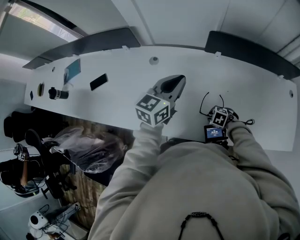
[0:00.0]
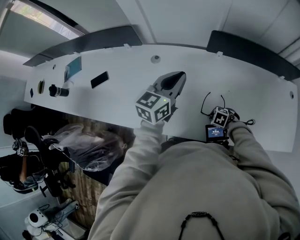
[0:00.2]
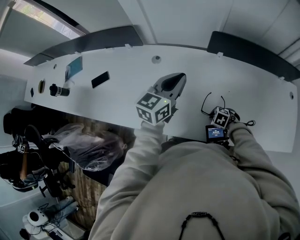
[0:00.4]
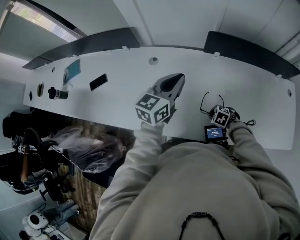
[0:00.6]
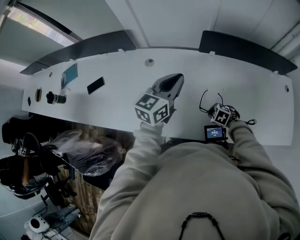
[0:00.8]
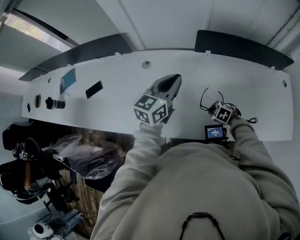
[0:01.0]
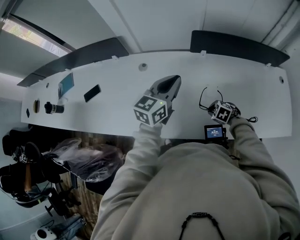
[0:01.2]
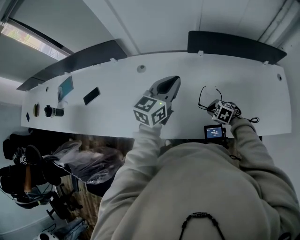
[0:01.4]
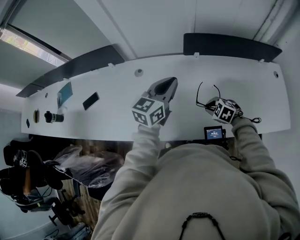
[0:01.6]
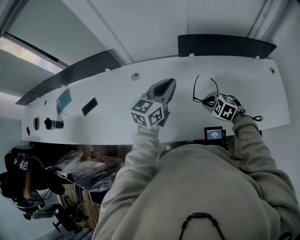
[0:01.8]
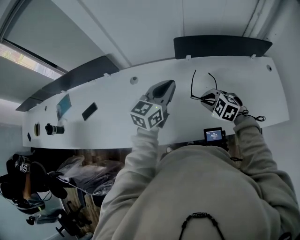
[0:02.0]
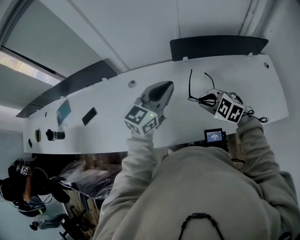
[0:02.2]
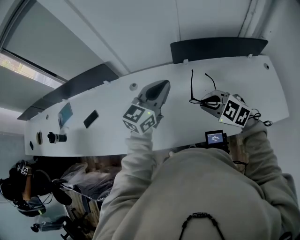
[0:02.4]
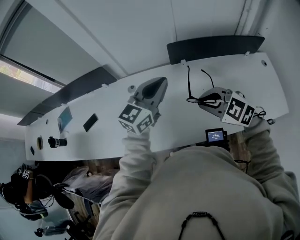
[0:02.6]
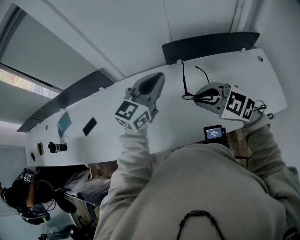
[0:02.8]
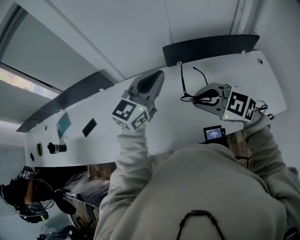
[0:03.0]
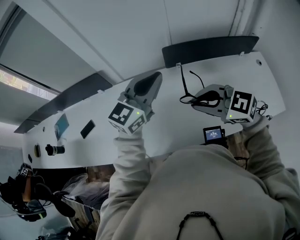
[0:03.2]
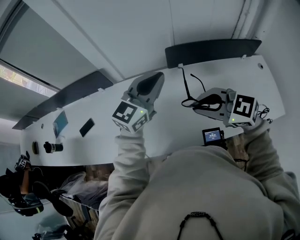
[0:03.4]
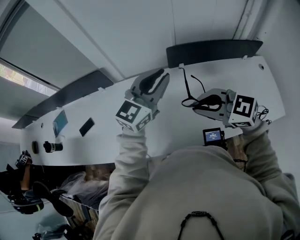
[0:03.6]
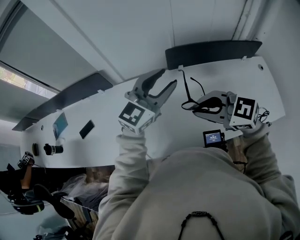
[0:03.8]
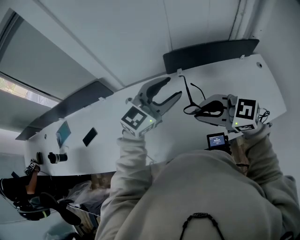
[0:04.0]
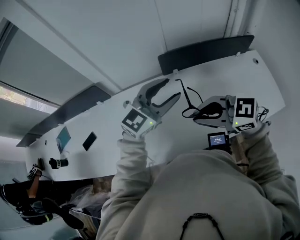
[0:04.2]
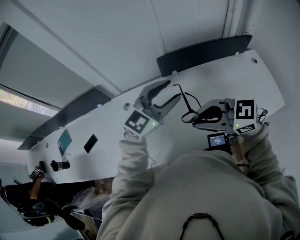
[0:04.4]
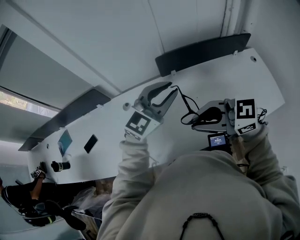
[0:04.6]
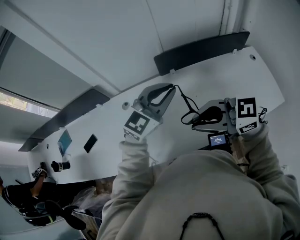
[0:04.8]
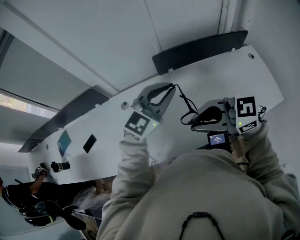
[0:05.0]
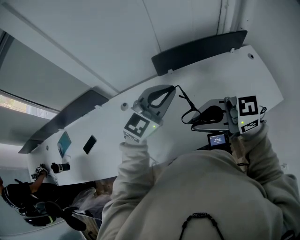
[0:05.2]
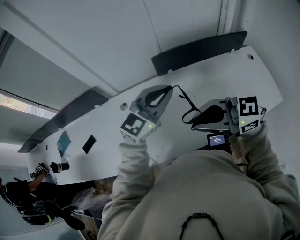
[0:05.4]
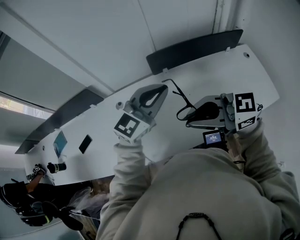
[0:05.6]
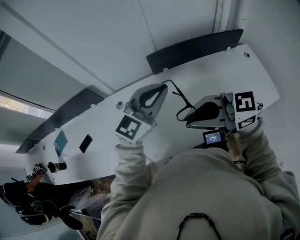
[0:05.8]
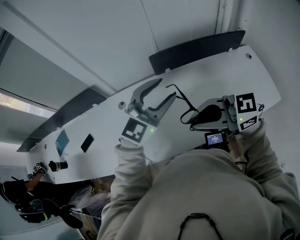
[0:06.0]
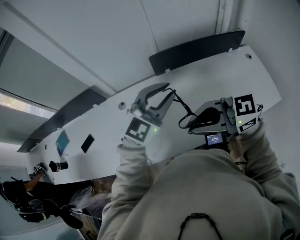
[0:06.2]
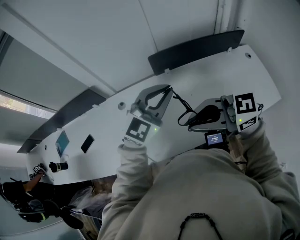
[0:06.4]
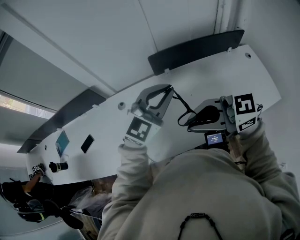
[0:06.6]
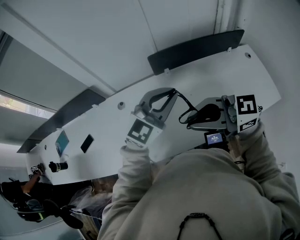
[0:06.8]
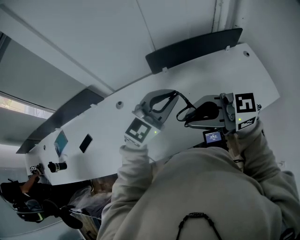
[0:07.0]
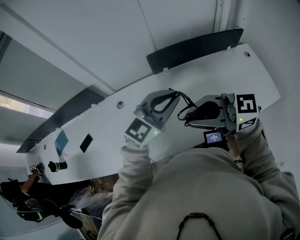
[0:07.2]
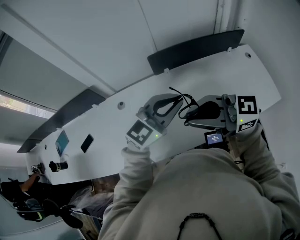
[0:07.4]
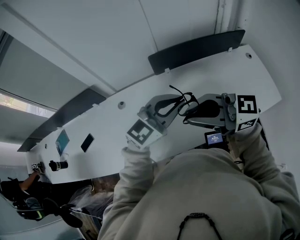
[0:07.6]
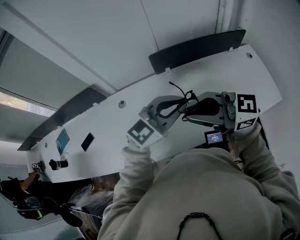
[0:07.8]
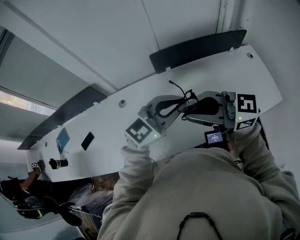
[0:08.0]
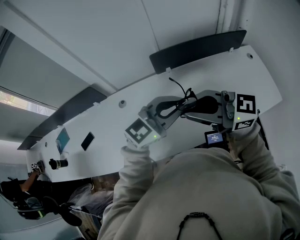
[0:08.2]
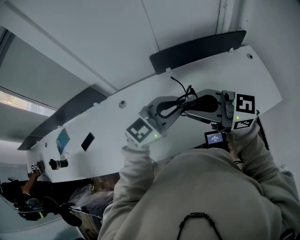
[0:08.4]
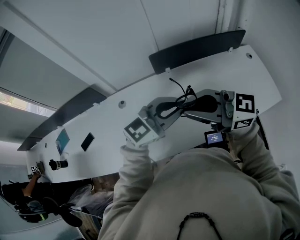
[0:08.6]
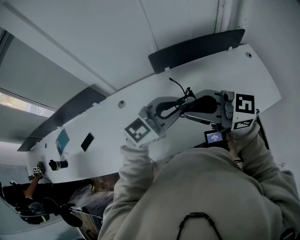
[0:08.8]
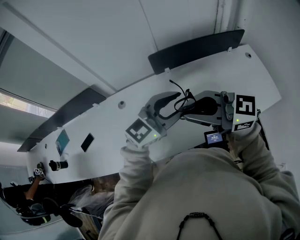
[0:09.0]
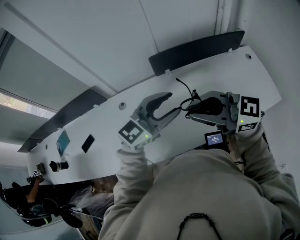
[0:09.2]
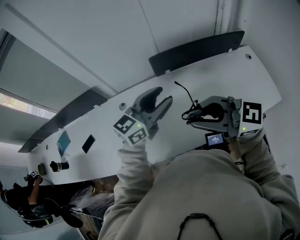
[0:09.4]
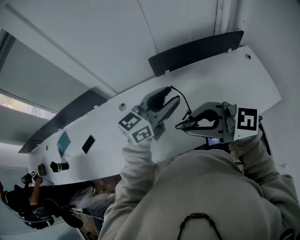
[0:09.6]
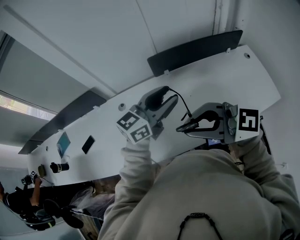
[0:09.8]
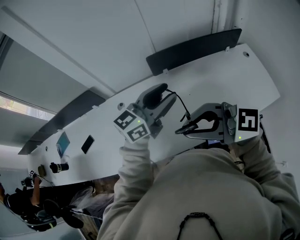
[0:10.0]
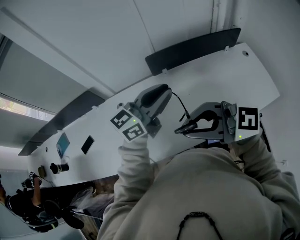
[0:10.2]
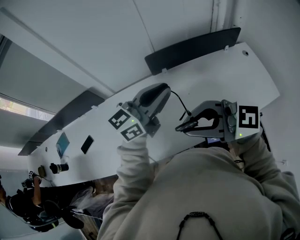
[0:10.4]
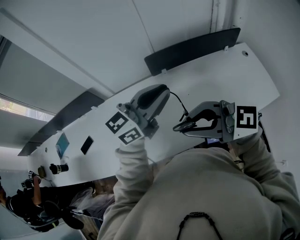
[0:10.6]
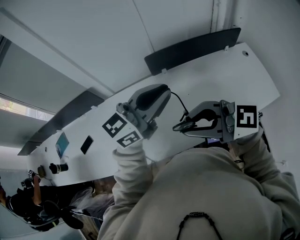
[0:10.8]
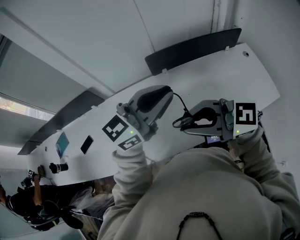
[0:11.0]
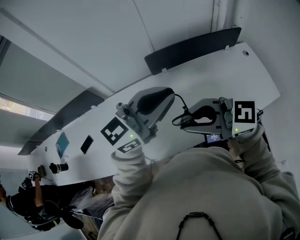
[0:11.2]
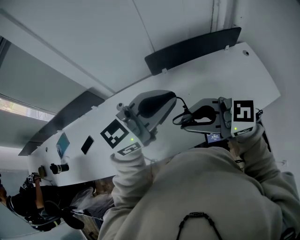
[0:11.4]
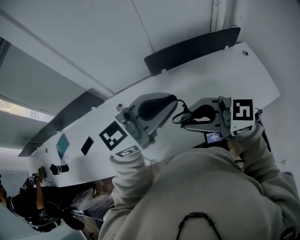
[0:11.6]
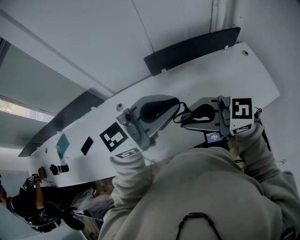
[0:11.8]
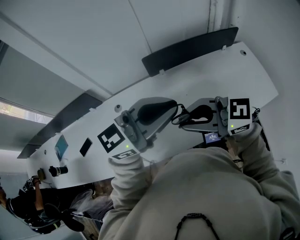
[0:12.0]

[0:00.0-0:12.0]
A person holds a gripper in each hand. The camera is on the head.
0.0 to 1.6 s: The right gripper moves upward, some 10 cm, and swivels roughly 20 degrees.
1.6 to 3.0 s: The left gripper heads upward, covering roughly 15 cm, and turns by approximately 20 degrees. The right gripper goes approximately 30 cm upward, and tilts its fingers about 30 degrees upward.
3.0 to 4.4 s: The right gripper rotates about 20 degrees, while the left gripper shifts by some 5 cm, rotates some 20 degrees, and opens.
4.4 to 6.0 s: The left gripper closes, then reopens.
6.0 to 7.6 s: The left gripper moves about 5 cm, and closes.
7.6 to 9.0 s: The left gripper opens.
9.0 to 10.4 s: The left gripper shifts by approximately 5 cm, changes its angle by roughly 20 degrees, and closes. The right gripper changes place by some 5 cm.
10.4 to 12.0 s: The left gripper changes place by approximately 10 cm.

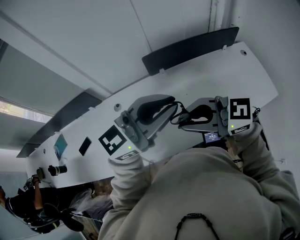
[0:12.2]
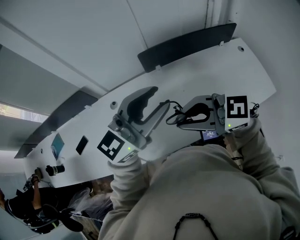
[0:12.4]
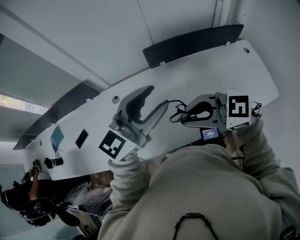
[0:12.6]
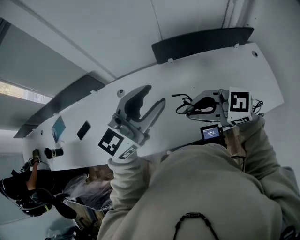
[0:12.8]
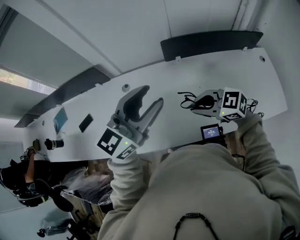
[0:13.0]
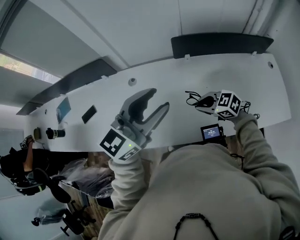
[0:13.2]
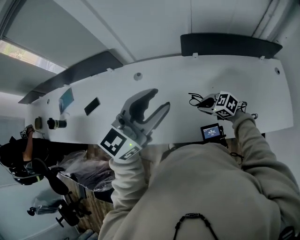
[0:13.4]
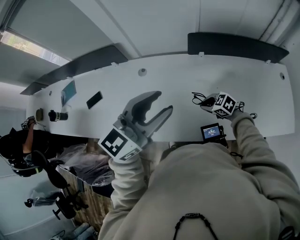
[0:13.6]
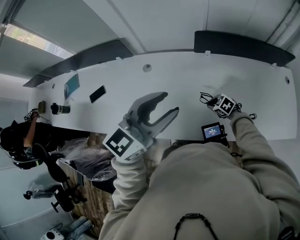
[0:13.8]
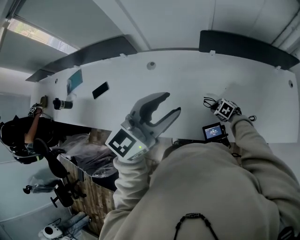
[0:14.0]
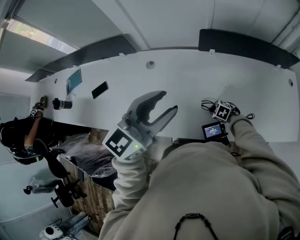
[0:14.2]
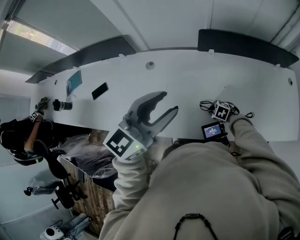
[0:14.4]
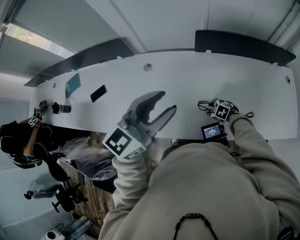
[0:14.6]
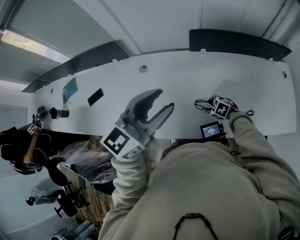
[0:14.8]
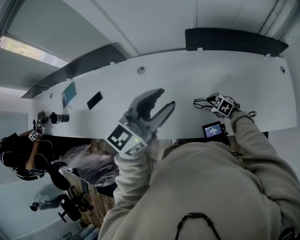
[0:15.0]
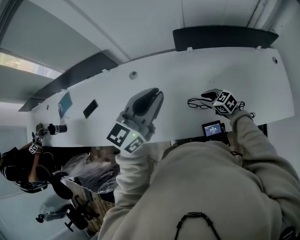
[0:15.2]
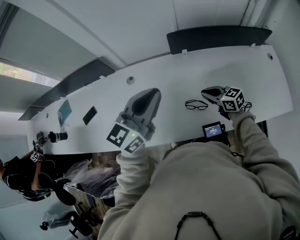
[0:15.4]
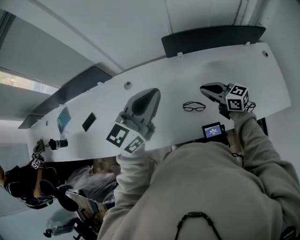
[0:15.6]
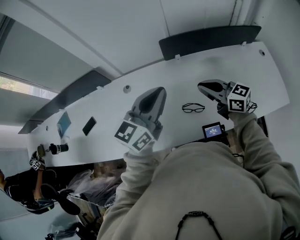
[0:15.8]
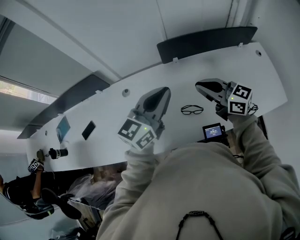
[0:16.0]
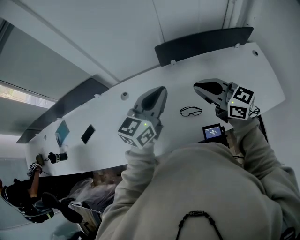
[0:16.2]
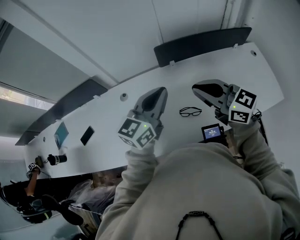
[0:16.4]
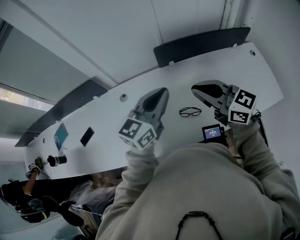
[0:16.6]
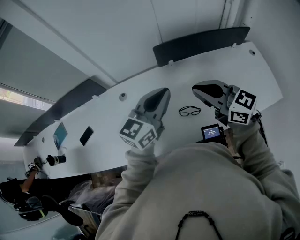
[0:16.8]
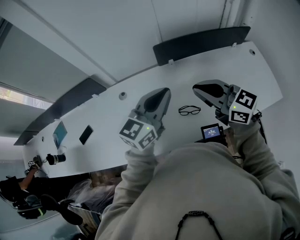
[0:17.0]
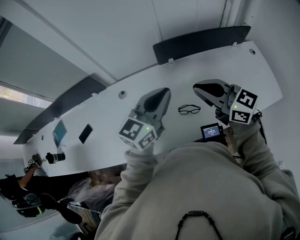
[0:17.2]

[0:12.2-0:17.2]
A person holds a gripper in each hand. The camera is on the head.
12.2 to 13.8 s: The left gripper moves approximately 15 cm, swivels approximately 40 degrees, and opens up. Meanwhile the right gripper shifts some 40 cm downward, and points its fingers approximately 50 degrees further downward.
13.8 to 15.6 s: The right gripper travels upward by about 20 cm, tips its fingers upward by some 50 degrees, and opens and closes again. Meanwhile the left gripper ends up approximately 5 cm from where it was, and closes up.
15.6 to 17.2 s: The right gripper shifts about 15 cm upward.

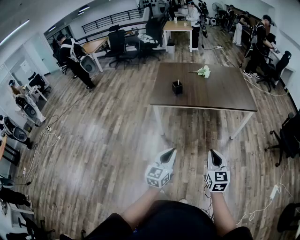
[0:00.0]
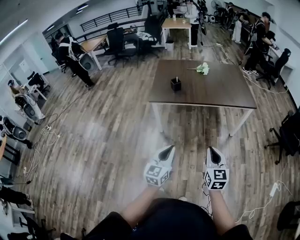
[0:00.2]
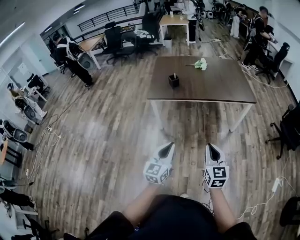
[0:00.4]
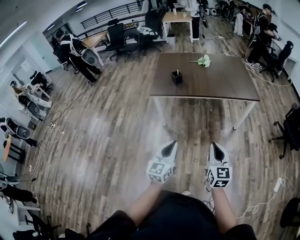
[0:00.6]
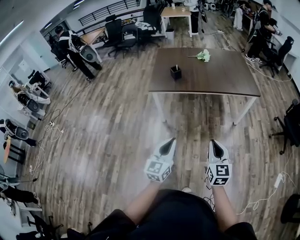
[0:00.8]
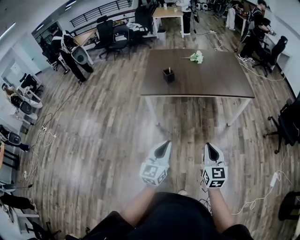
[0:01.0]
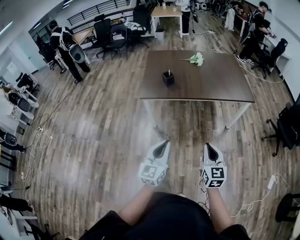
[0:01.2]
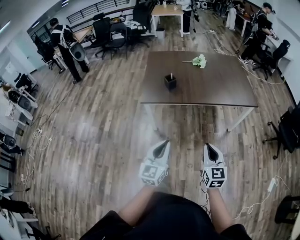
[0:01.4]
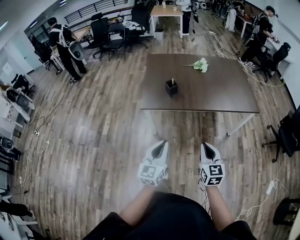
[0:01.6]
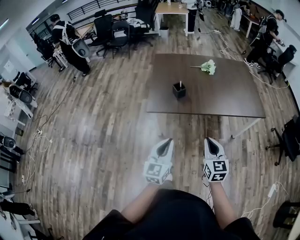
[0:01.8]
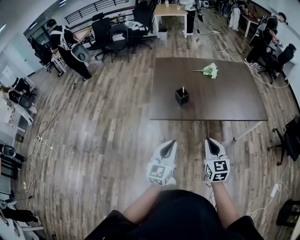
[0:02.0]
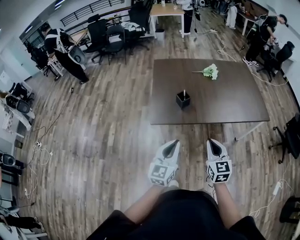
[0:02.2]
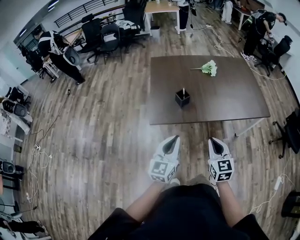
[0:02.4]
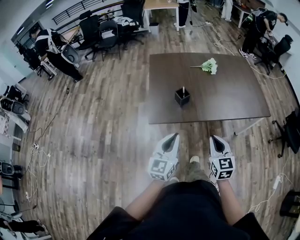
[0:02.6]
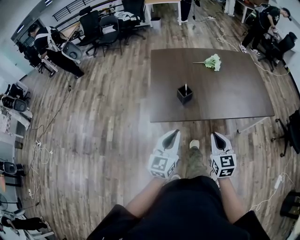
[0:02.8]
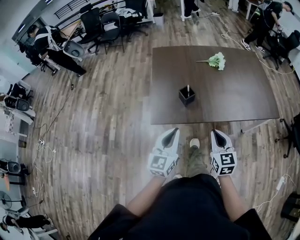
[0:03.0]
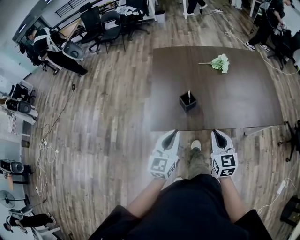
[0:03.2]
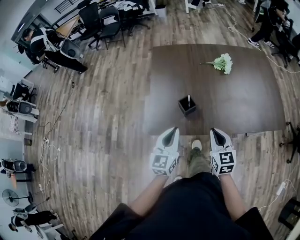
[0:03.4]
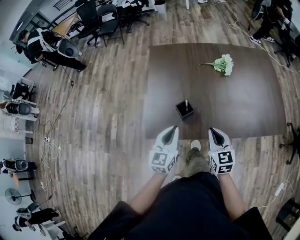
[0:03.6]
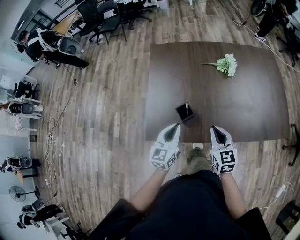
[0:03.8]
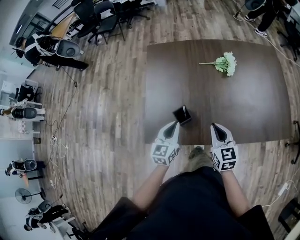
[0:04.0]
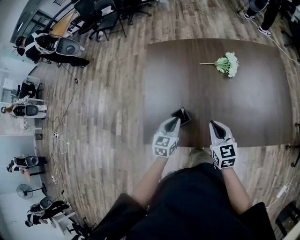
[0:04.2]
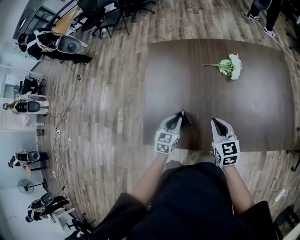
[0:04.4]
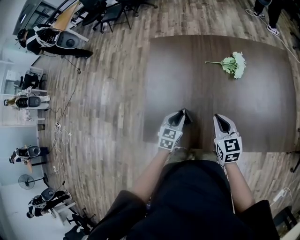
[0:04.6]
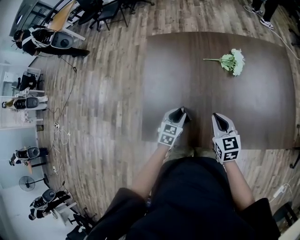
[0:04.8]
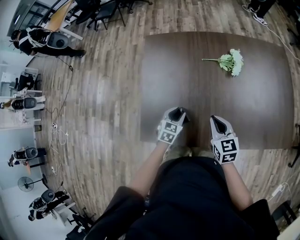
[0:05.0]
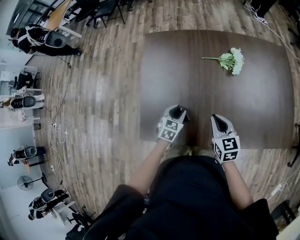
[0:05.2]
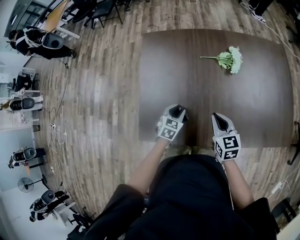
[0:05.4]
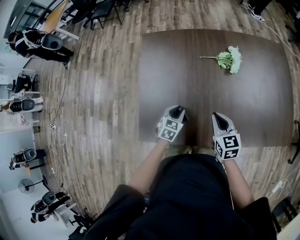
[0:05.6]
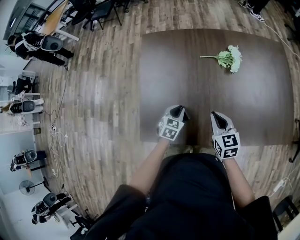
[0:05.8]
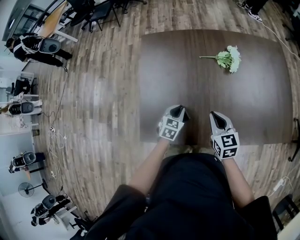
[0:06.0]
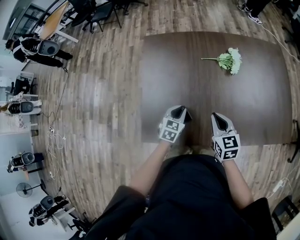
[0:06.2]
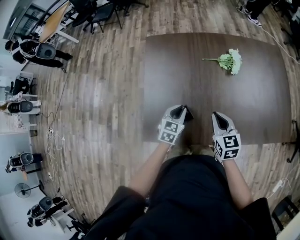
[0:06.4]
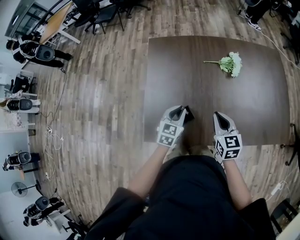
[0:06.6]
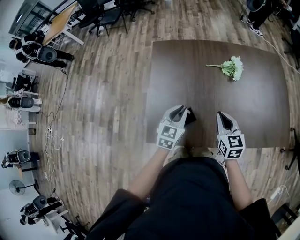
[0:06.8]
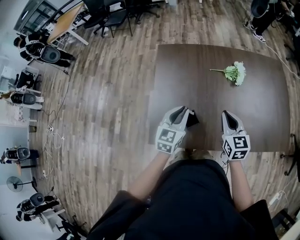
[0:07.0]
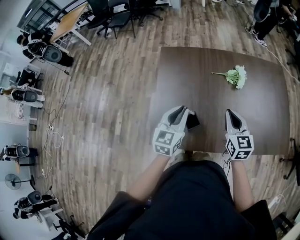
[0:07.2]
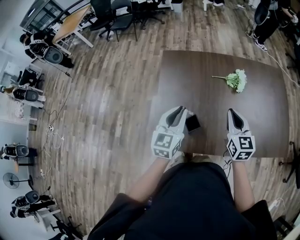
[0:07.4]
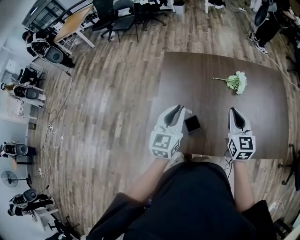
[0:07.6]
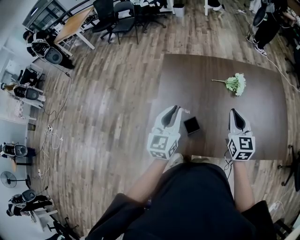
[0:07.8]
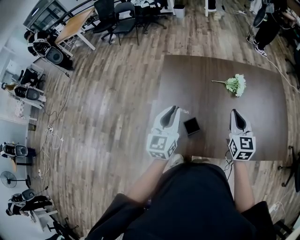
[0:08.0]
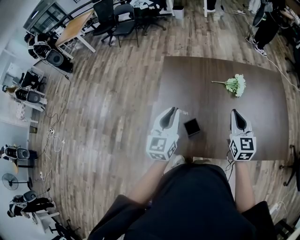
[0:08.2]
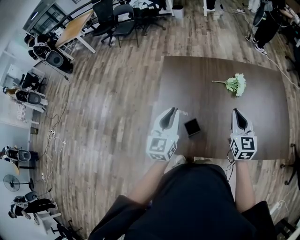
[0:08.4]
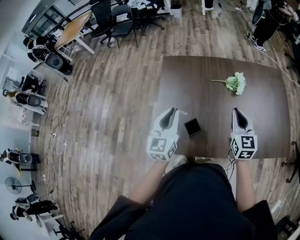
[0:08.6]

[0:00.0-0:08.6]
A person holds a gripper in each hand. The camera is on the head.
0.0 to 1.4 s: The two grippers go about 20 cm forward.
1.4 to 2.8 s: The two grippers go approximately 40 cm forward and to the left.
2.8 to 4.4 s: The pair of grippers is taken forward, approximately 50 cm. The left gripper goes roughly 20 cm downward, and tips its fingers downward by approximately 30 degrees.
4.4 to 5.8 s: The left gripper is displaced downward by roughly 5 cm.
5.8 to 7.2 s: The right gripper goes approximately 15 cm upward. Meanwhile the left gripper shifts roughly 25 cm upward, and swivels some 30 degrees.
7.2 to 8.6 s: The left gripper changes place by some 5 cm.
